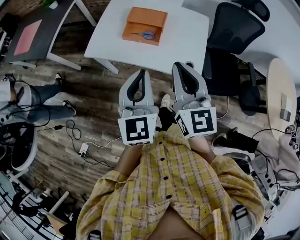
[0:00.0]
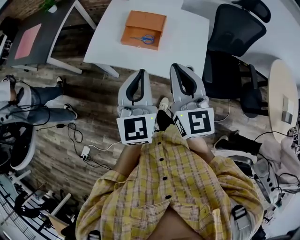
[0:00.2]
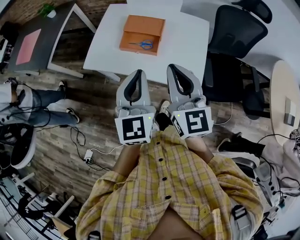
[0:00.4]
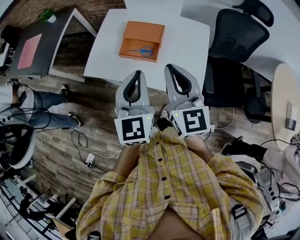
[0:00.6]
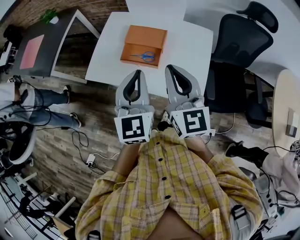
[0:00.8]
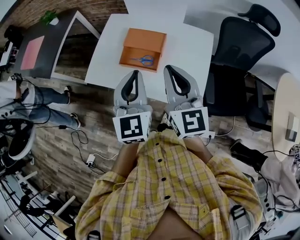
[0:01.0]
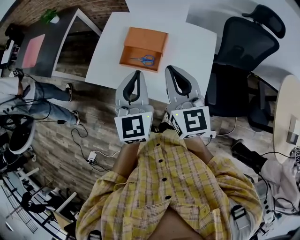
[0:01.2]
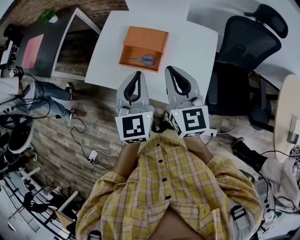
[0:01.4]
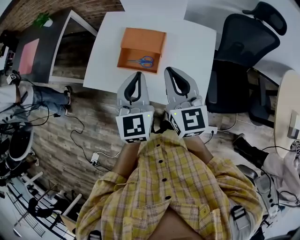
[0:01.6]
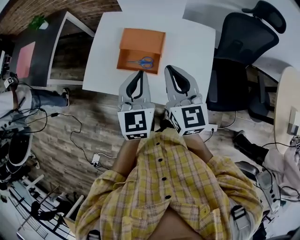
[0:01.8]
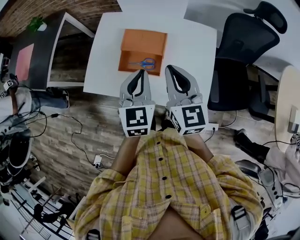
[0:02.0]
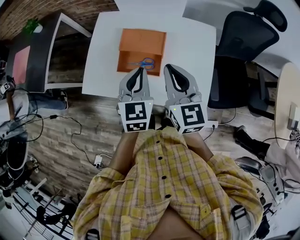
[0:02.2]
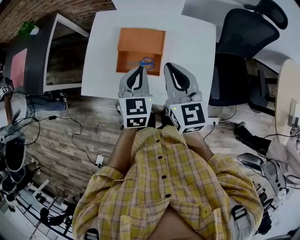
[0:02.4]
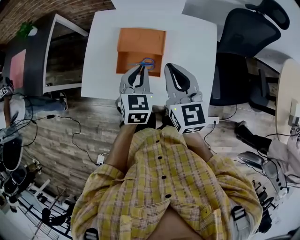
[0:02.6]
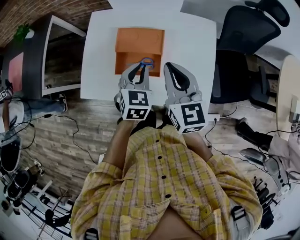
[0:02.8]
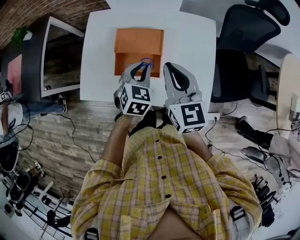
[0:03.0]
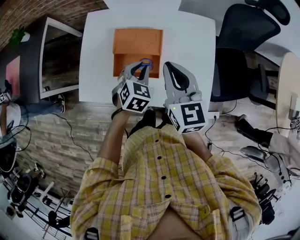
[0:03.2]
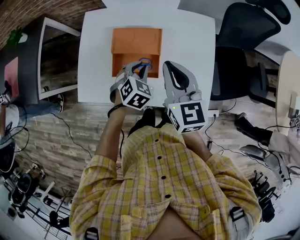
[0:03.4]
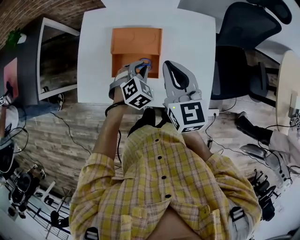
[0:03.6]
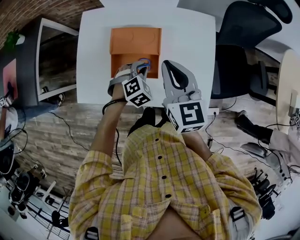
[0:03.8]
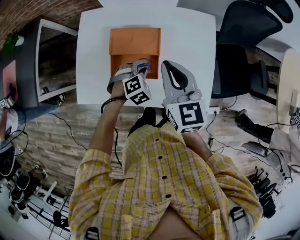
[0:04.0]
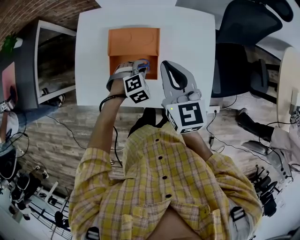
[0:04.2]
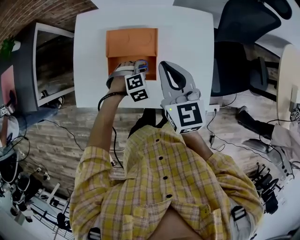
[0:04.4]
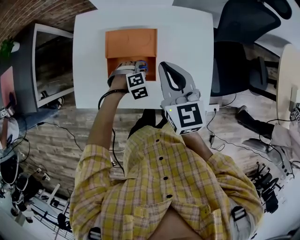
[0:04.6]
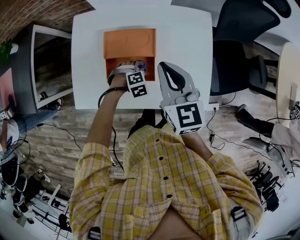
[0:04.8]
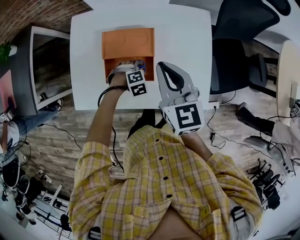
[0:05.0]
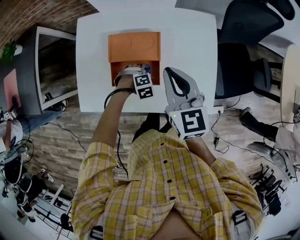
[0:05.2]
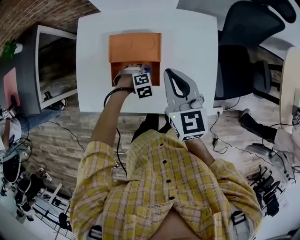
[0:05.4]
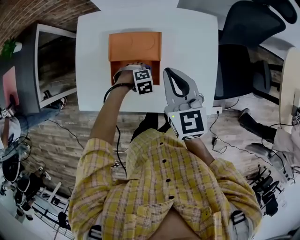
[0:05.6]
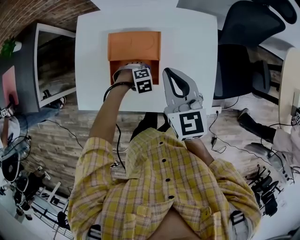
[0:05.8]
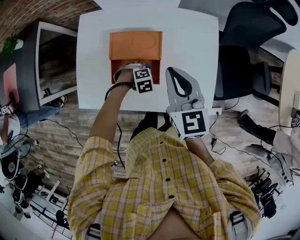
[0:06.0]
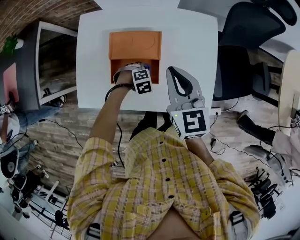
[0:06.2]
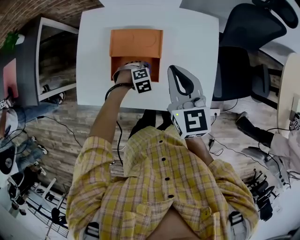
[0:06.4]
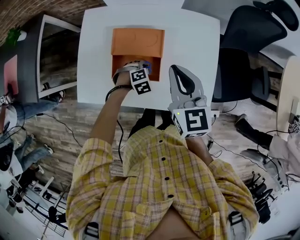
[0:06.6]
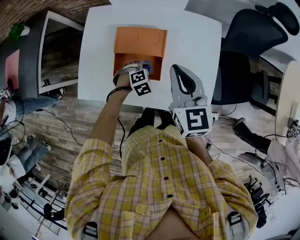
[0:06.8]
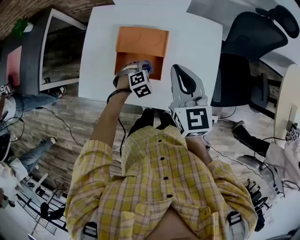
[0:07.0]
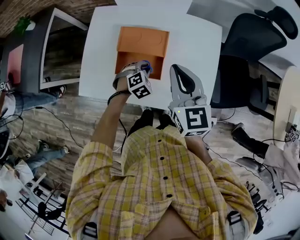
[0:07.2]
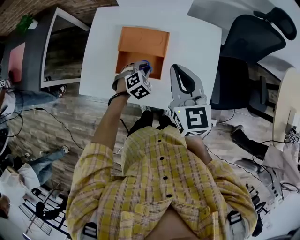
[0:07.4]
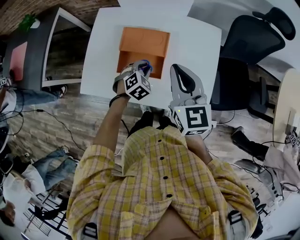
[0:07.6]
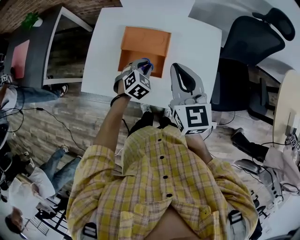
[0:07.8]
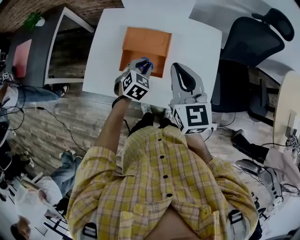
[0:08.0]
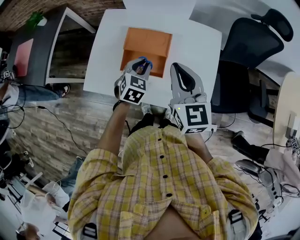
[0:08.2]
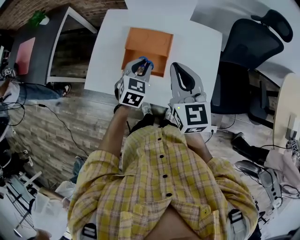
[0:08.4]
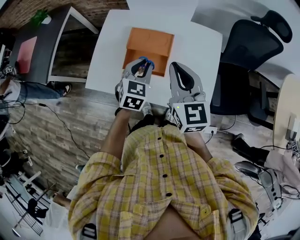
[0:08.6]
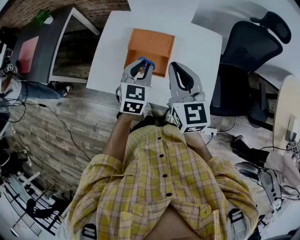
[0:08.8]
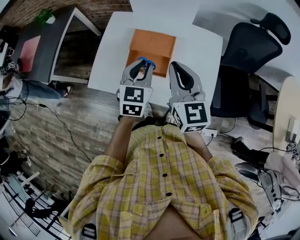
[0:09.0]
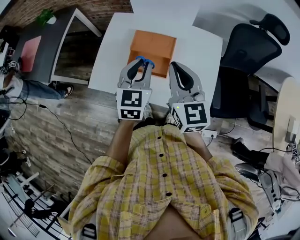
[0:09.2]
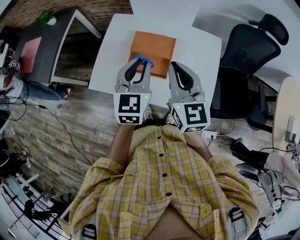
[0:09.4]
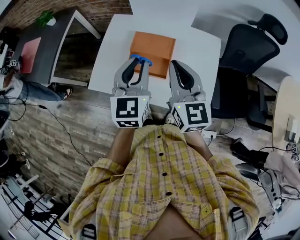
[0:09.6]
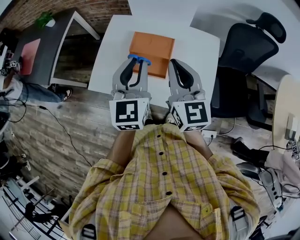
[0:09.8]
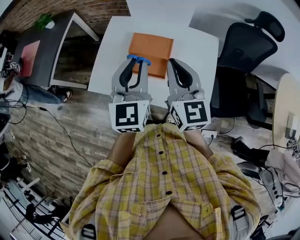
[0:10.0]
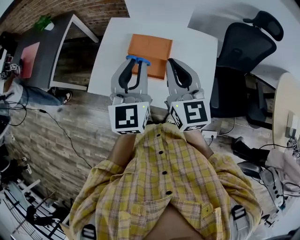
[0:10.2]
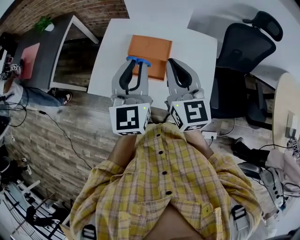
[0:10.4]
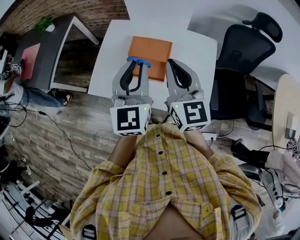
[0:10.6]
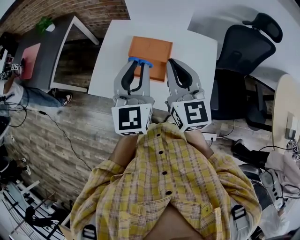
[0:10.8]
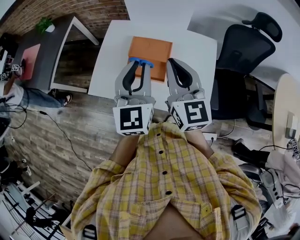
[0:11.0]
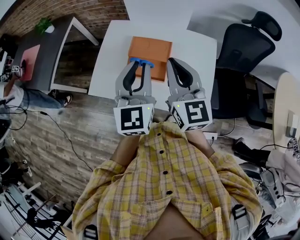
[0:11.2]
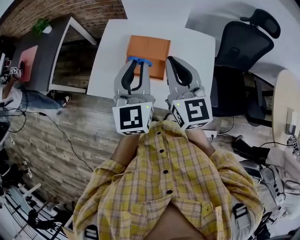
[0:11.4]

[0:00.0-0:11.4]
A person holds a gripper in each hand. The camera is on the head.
0:00.0 to 0:01.4: The grippers both shift forward by about 20 cm.
0:01.4 to 0:02.8: The left gripper travels downward and forward by some 20 cm, and changes its angle by roughly 30 degrees. The right gripper goes some 10 cm forward and downward.
0:02.8 to 0:04.2: The left gripper travels downward by about 15 cm, and twists roughly 50 degrees clockwise, seen from behind.
0:04.2 to 0:05.6: The left gripper travels downward by about 10 cm, and rotates about 20 degrees.
0:05.6 to 0:07.2: The left gripper goes approximately 10 cm upward, and turns by some 30 degrees.
0:07.2 to 0:08.6: The right gripper changes place by about 5 cm; the left gripper goes approximately 20 cm upward, and rotates about 50 degrees.
0:08.6 to 0:10.0: The left gripper is displaced upward by about 15 cm, and rotates approximately 30 degrees. Meanwhile the right gripper shifts by about 5 cm.
0:10.0 to 0:11.4: There are only small adjustments of the grippers.

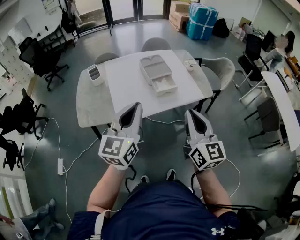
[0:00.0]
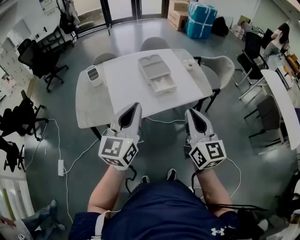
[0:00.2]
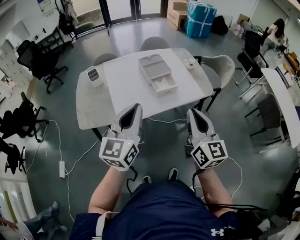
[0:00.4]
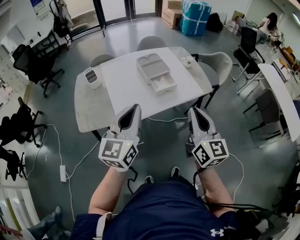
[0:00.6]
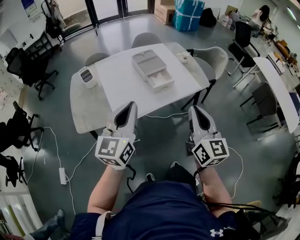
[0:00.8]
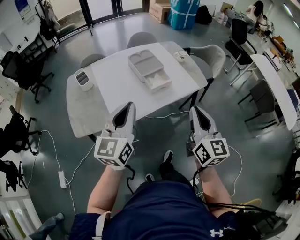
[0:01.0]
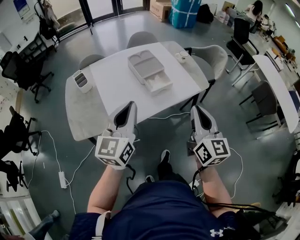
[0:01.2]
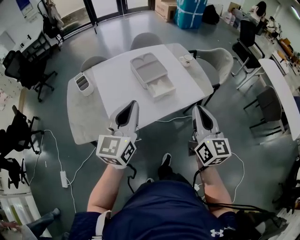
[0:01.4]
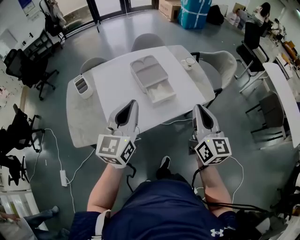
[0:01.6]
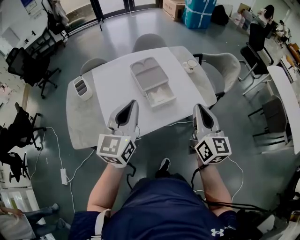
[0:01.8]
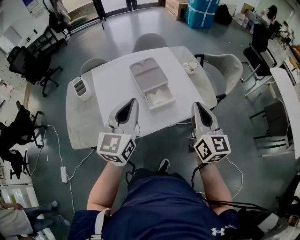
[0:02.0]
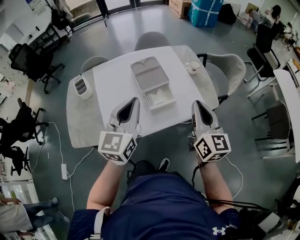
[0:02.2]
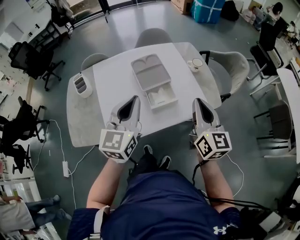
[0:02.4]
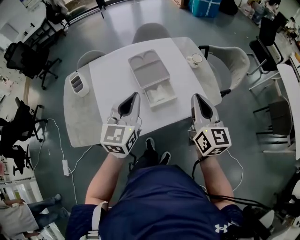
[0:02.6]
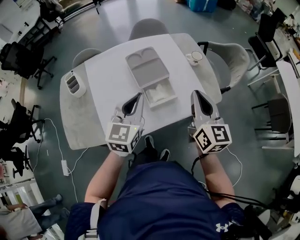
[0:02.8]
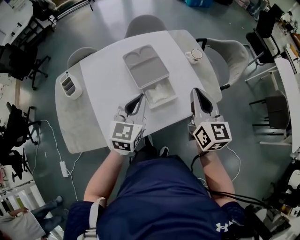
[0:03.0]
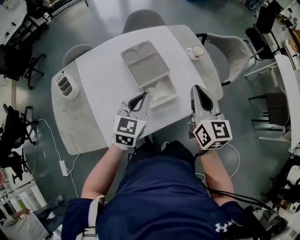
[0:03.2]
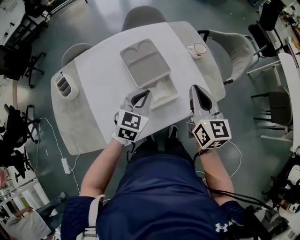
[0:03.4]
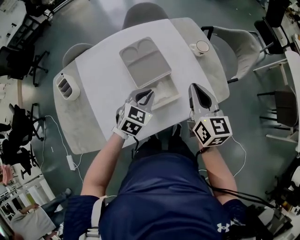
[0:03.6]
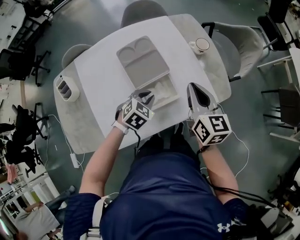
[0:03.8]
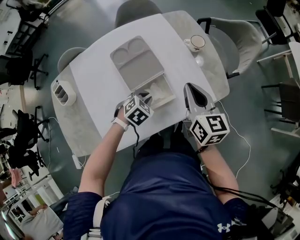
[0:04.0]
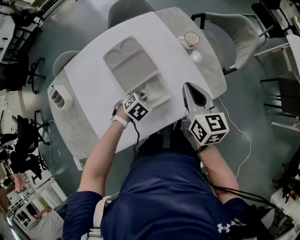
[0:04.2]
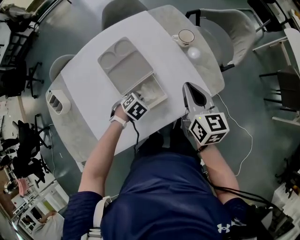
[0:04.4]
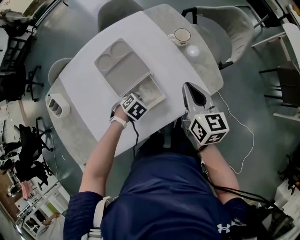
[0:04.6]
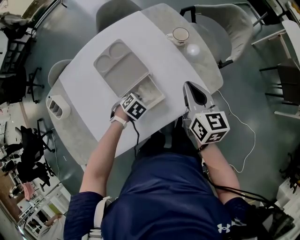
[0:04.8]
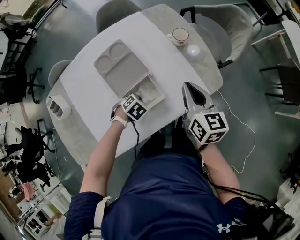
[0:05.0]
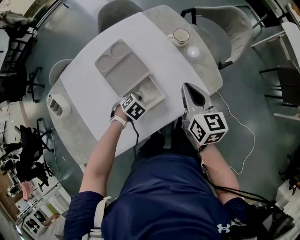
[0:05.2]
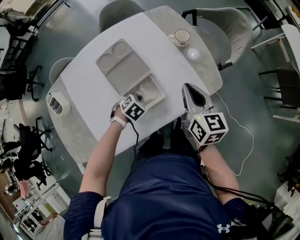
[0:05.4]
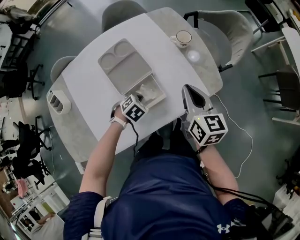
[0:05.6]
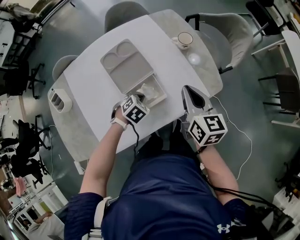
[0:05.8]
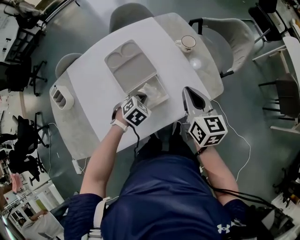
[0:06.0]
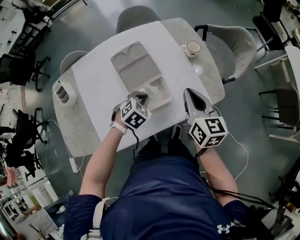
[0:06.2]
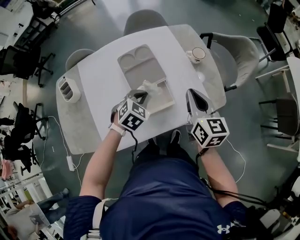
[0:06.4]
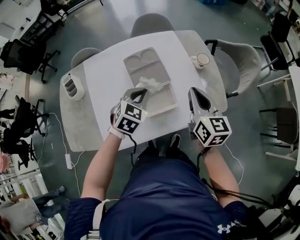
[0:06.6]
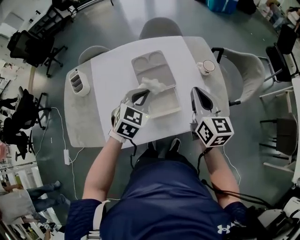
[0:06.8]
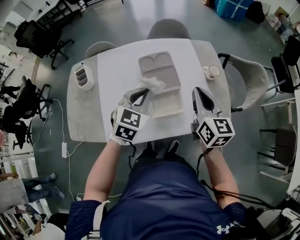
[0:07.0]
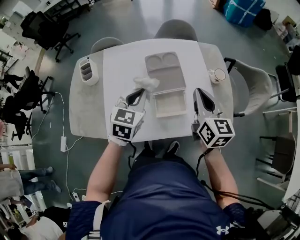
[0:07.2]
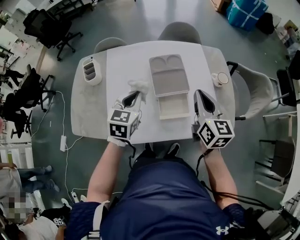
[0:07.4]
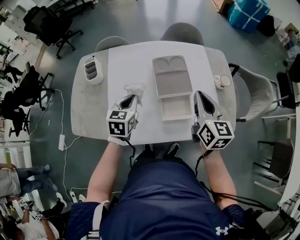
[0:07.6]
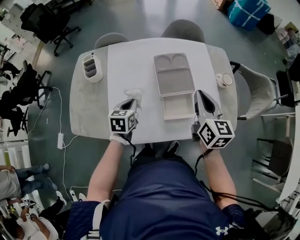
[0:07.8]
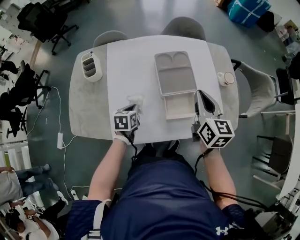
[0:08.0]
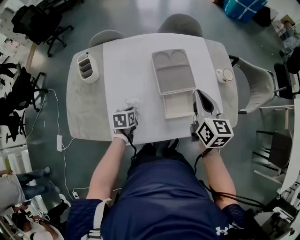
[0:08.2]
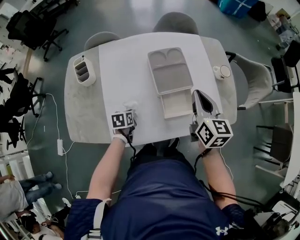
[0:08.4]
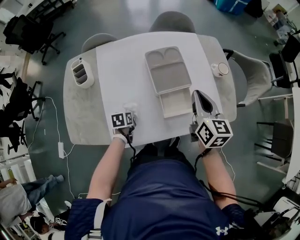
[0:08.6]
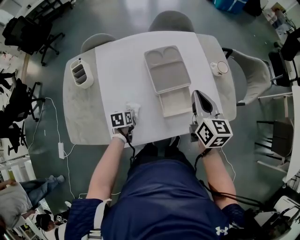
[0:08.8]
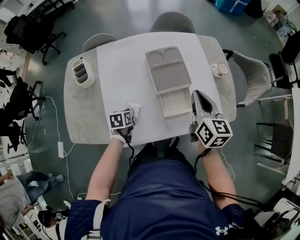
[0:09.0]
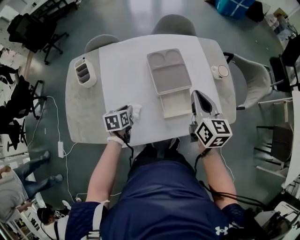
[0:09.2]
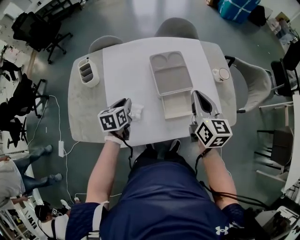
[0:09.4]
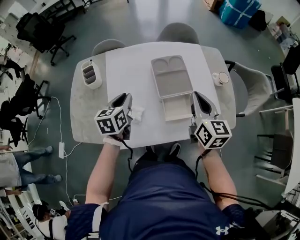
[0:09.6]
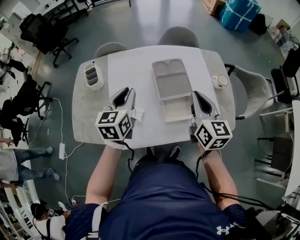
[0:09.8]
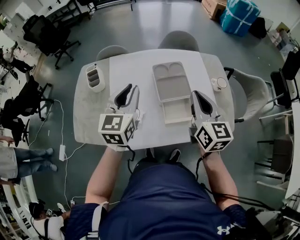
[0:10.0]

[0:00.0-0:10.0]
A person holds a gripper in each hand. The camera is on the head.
0:00.0 to 0:01.4: The grippers both shift forward by some 10 cm.
0:01.4 to 0:02.8: The right gripper moves forward, roughly 20 cm. The left gripper moves forward and downward, about 20 cm.
0:02.8 to 0:04.2: The left gripper travels downward by roughly 30 cm, and tips its fingers downward by approximately 60 degrees. The right gripper shifts some 10 cm downward.
0:04.2 to 0:05.8: The grippers move only a little.
0:05.8 to 0:07.2: The left gripper travels upward by about 25 cm, and angles its fingers upward, by approximately 40 degrees, while the right gripper shifts by approximately 10 cm, and turns by approximately 20 degrees.
0:07.2 to 0:08.6: The left gripper shifts some 30 cm downward and to the left, and changes its angle by some 50 degrees. Meanwhile the right gripper heads to the left, covering about 5 cm.
0:08.6 to 0:10.0: The right gripper goes approximately 10 cm upward, while the left gripper moves upward, approximately 35 cm, and tips its fingers upward by about 50 degrees.

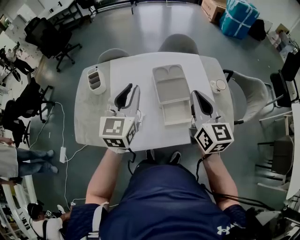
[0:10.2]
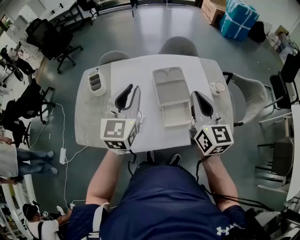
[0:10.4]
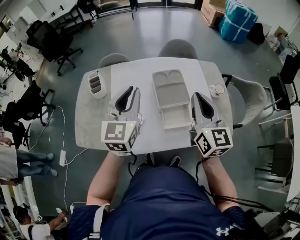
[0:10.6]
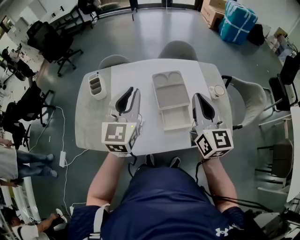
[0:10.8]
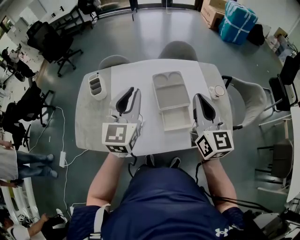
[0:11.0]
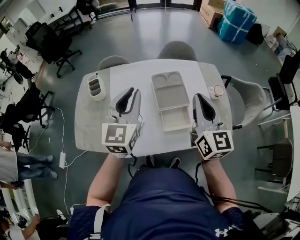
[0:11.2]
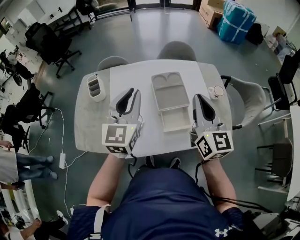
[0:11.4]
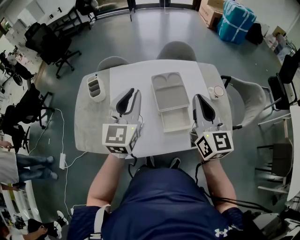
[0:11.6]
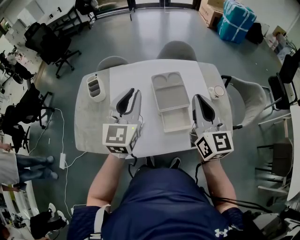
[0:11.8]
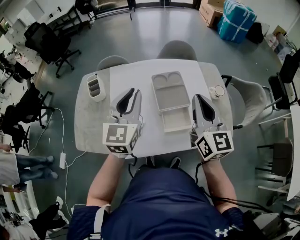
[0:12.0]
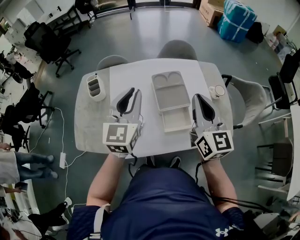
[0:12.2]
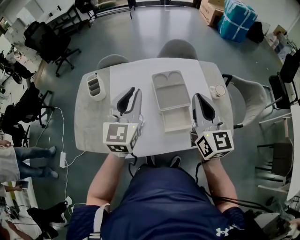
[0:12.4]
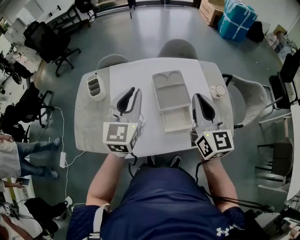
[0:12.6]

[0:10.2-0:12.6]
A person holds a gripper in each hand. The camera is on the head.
0:10.2 to 0:12.6: The grippers move only a little.
